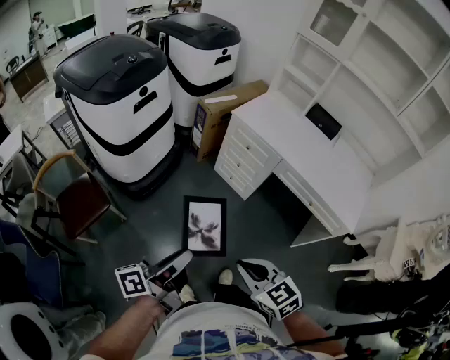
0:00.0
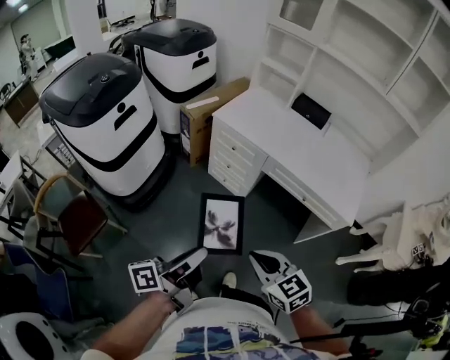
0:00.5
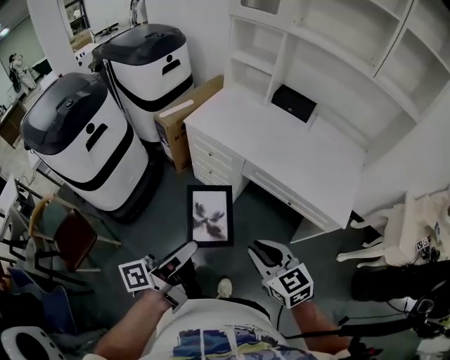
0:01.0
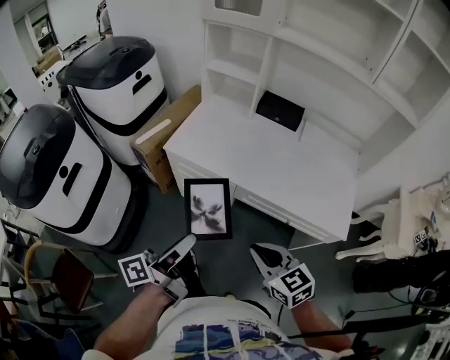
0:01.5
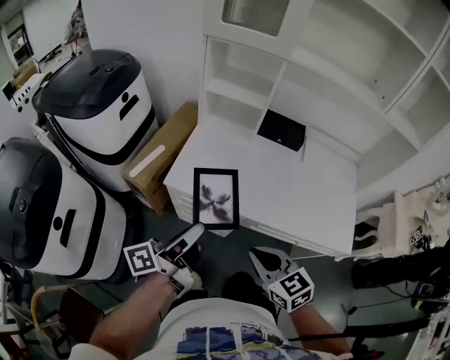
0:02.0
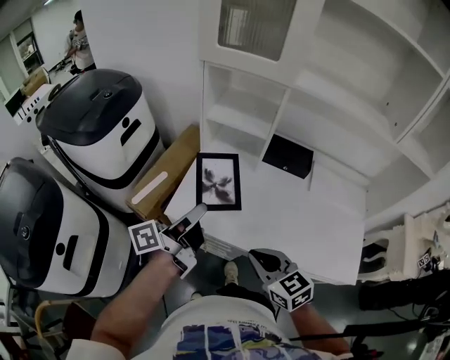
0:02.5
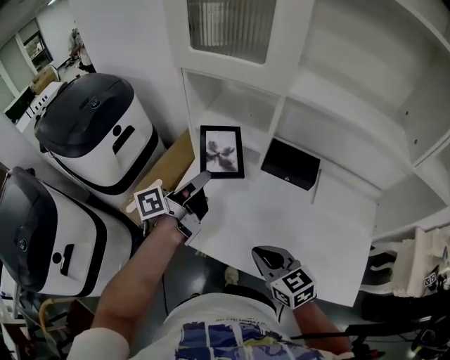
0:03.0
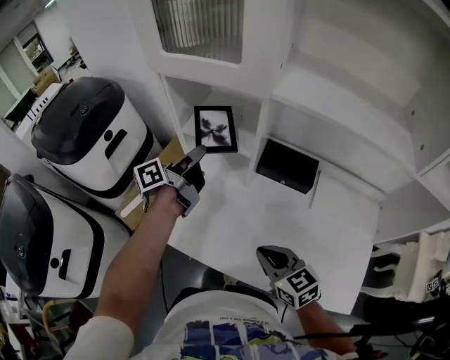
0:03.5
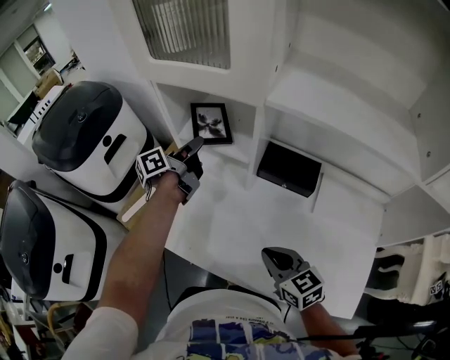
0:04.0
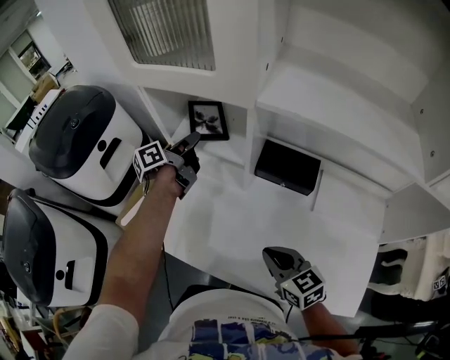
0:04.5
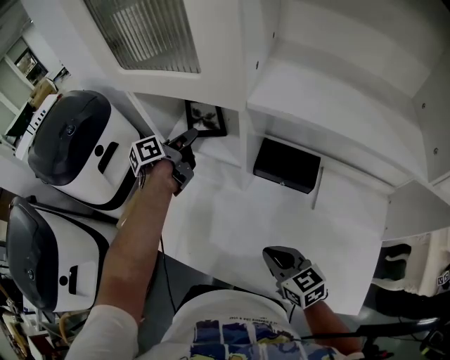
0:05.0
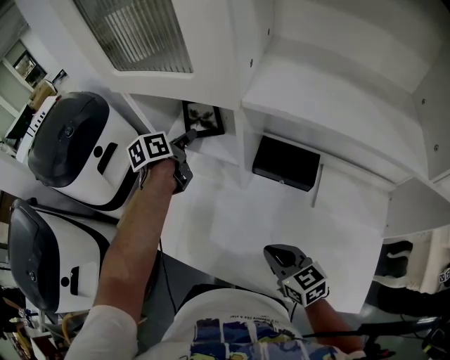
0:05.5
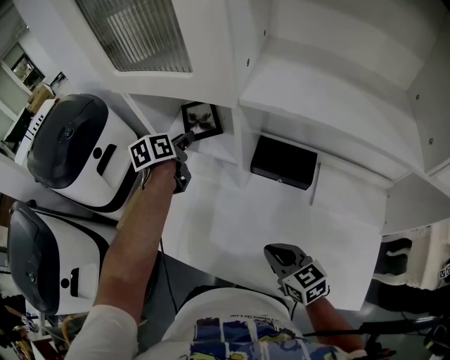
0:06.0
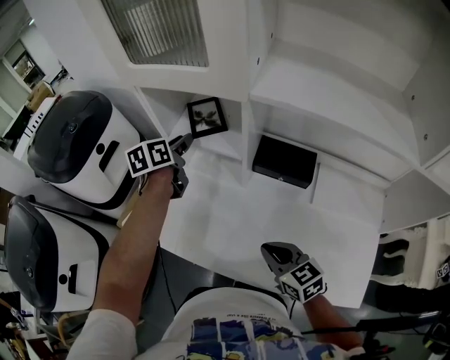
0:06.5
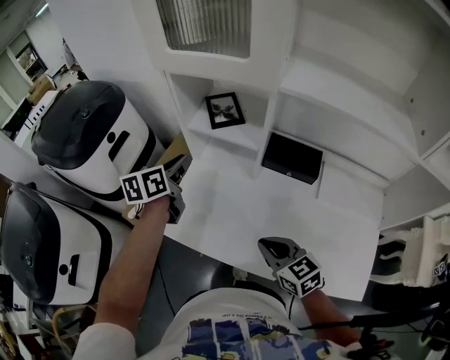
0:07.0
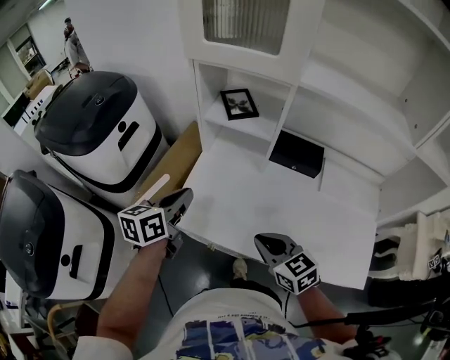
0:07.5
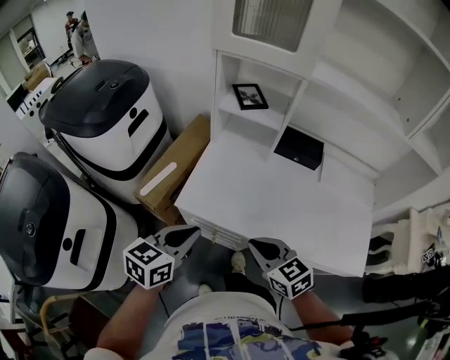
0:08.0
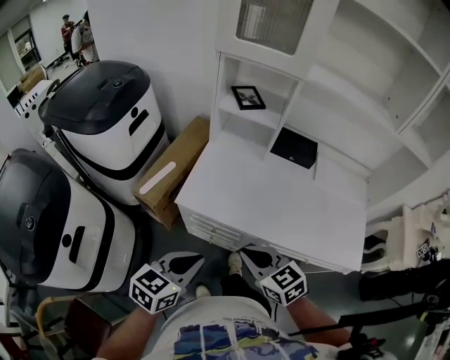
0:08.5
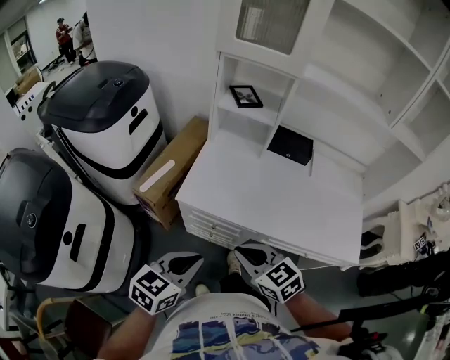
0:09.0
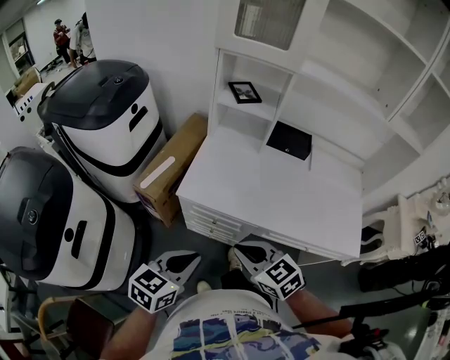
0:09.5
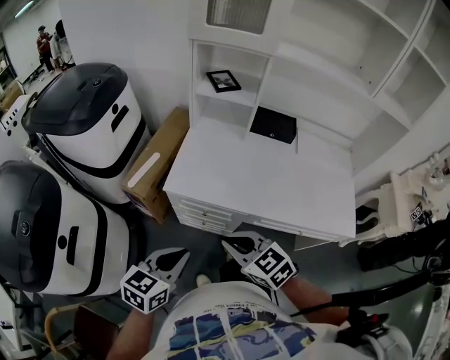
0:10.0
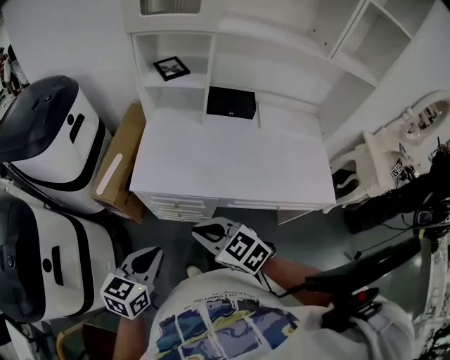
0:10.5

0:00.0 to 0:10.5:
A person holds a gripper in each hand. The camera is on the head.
0:00.0 to 0:02.0: Both grippers are carried forward, some 50 cm. The right gripper changes its angle by about 30 degrees, while the left gripper swivels some 20 degrees.
0:02.0 to 0:04.0: The right gripper goes roughly 30 cm forward and to the right. Meanwhile the left gripper heads forward, covering approximately 50 cm.
0:04.0 to 0:06.5: The left gripper swivels some 40 degrees.
0:06.5 to 0:08.5: The right gripper moves to the left and backward, approximately 25 cm. Meanwhile the left gripper goes about 50 cm backward, swivels approximately 30 degrees, and closes up.
0:08.5 to 0:10.5: The right gripper ends up approximately 5 cm from where it was, while the left gripper ends up about 5 cm from where it was.

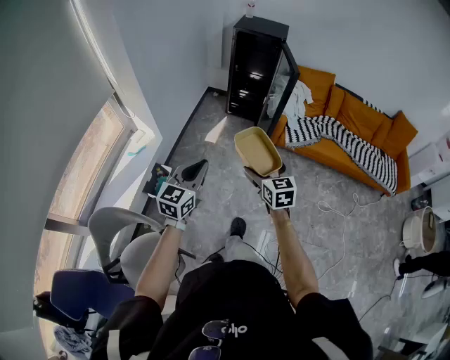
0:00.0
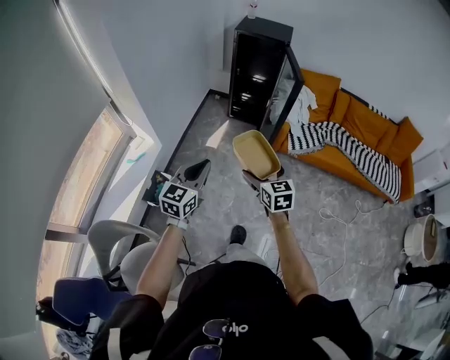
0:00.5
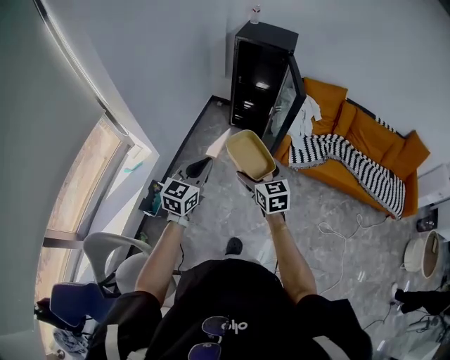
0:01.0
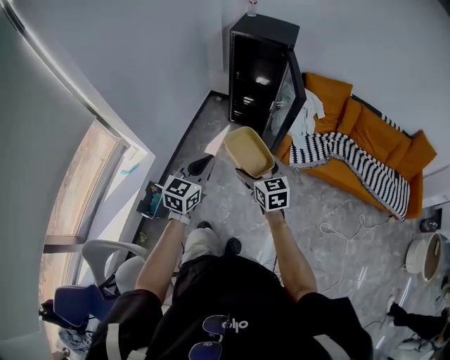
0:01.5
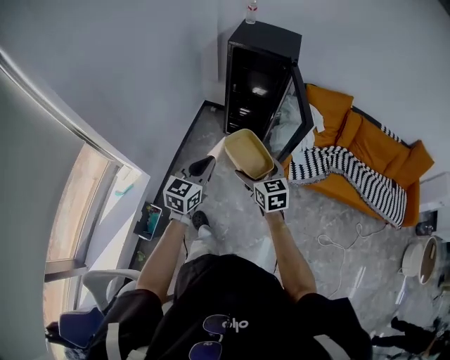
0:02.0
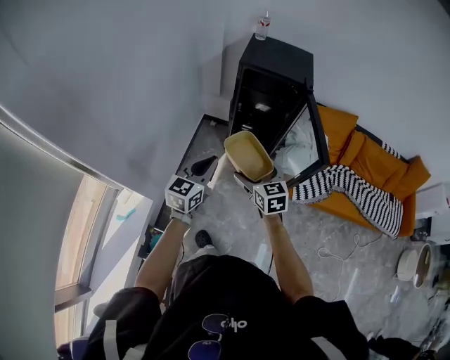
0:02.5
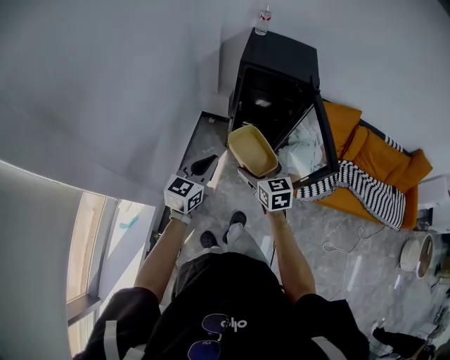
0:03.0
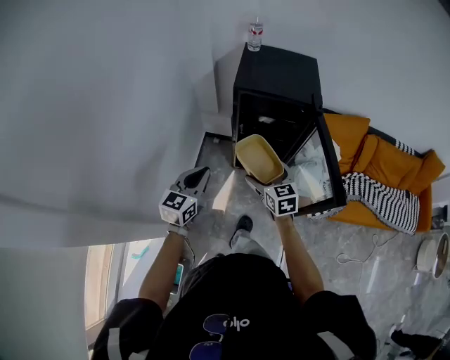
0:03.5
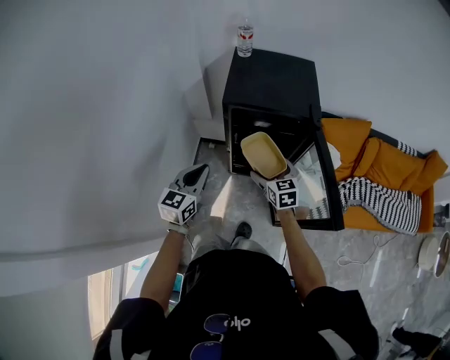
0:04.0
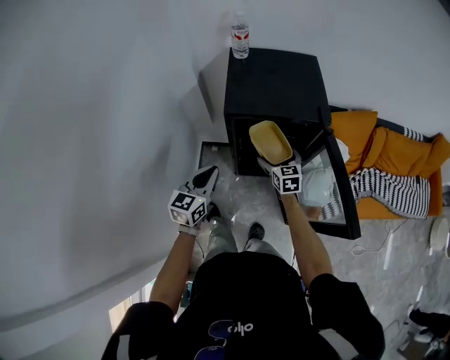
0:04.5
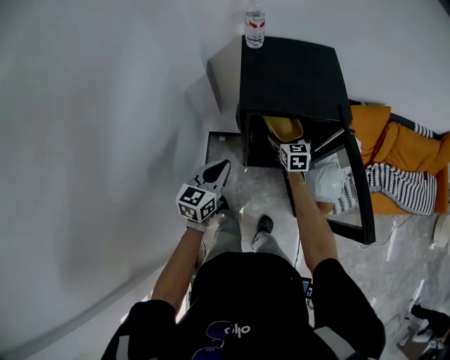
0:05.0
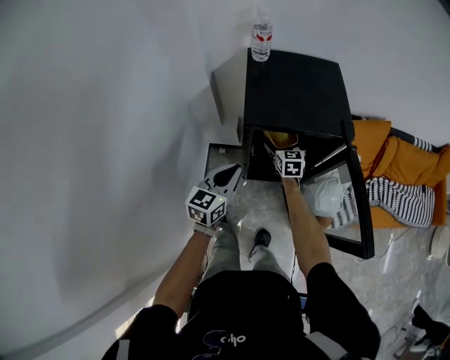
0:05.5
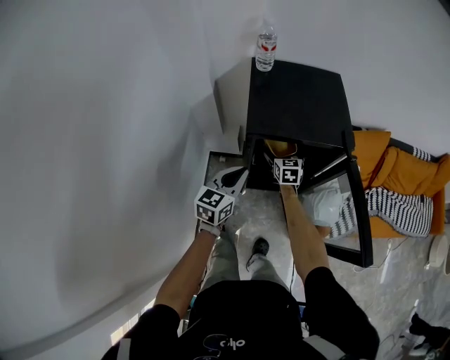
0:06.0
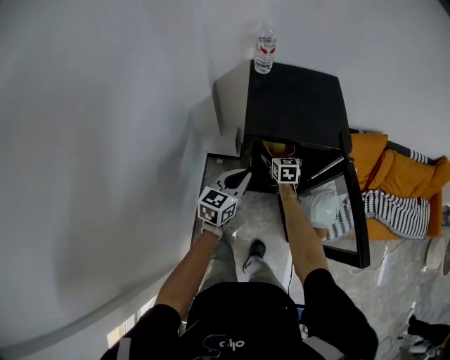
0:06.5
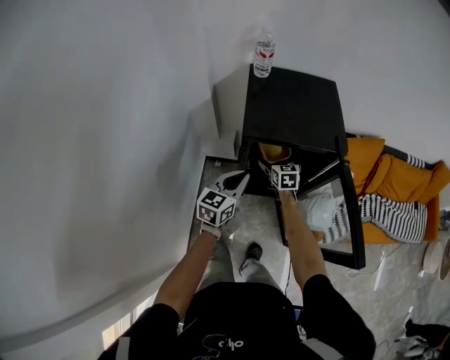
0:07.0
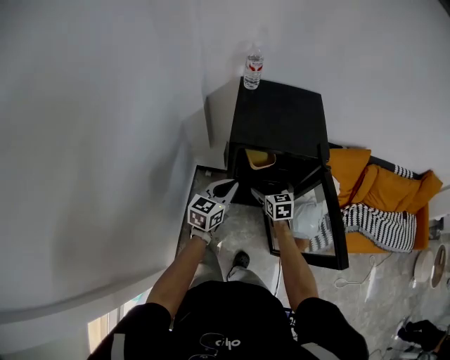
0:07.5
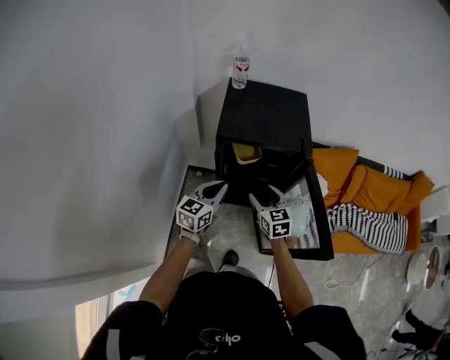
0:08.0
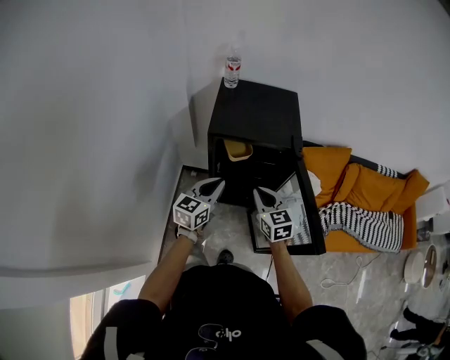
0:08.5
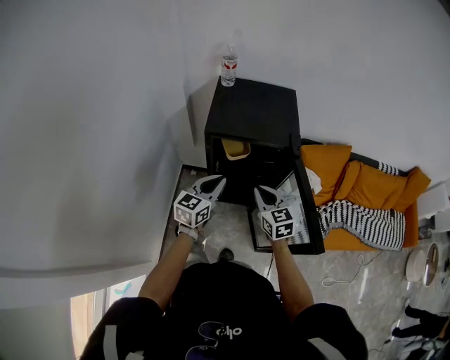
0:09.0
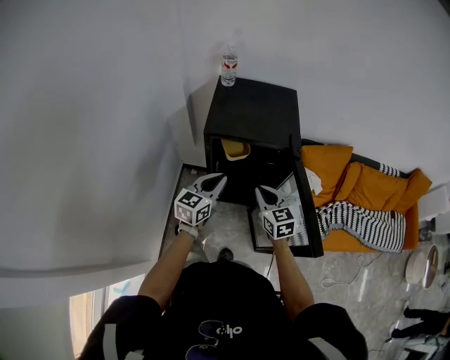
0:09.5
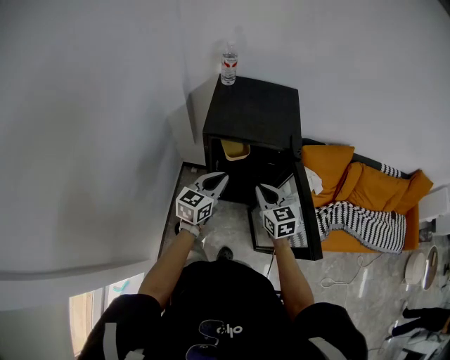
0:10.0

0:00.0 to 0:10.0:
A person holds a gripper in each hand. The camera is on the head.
0:00.0 to 0:02.0: Both grippers are carried forward, about 40 cm.
0:02.0 to 0:04.0: Both grippers are carried forward, some 50 cm.
0:04.0 to 0:06.0: The left gripper travels forward by some 15 cm. The right gripper heads forward and downward, covering about 25 cm.
0:06.0 to 0:08.0: The left gripper moves backward and to the right, about 10 cm, while the right gripper shifts about 25 cm backward and upward, and closes.
0:08.0 to 0:10.0: The left gripper is displaced to the right by approximately 5 cm. Meanwhile the right gripper ends up some 5 cm from where it was, and closes up.

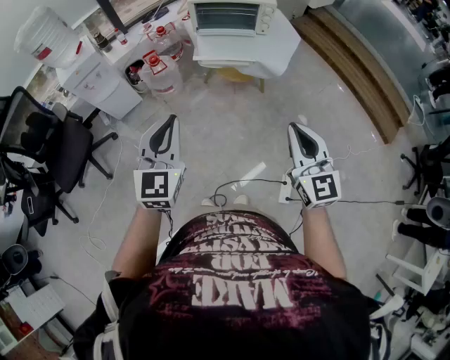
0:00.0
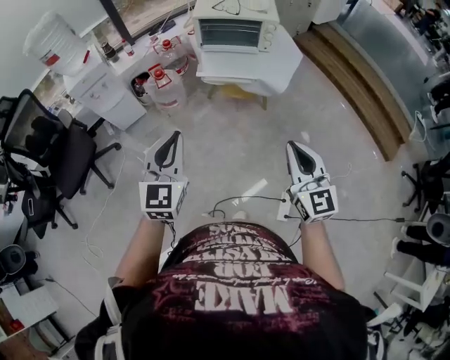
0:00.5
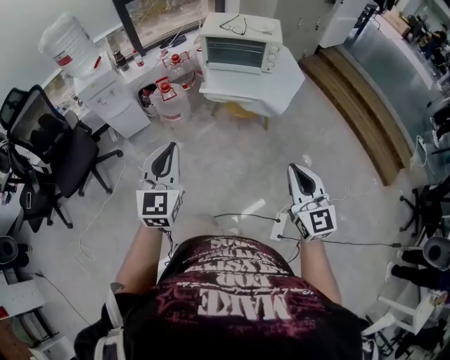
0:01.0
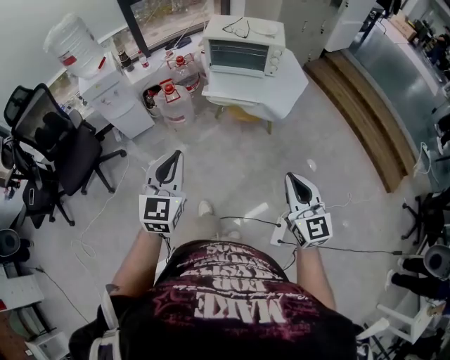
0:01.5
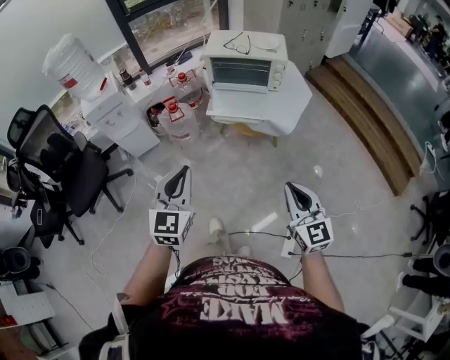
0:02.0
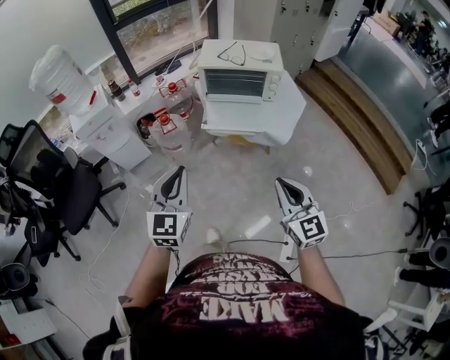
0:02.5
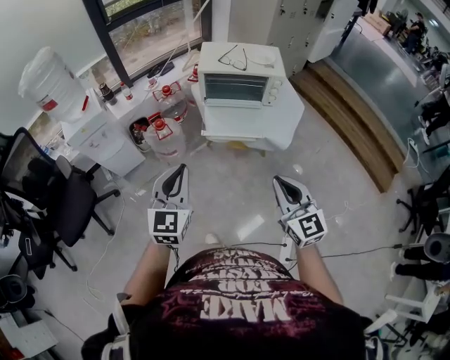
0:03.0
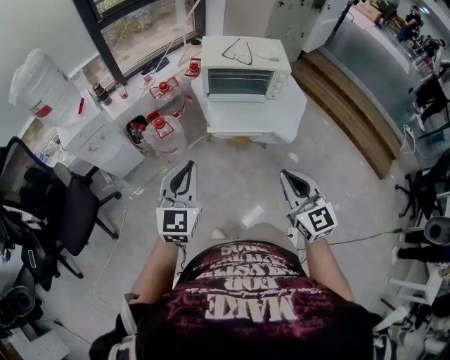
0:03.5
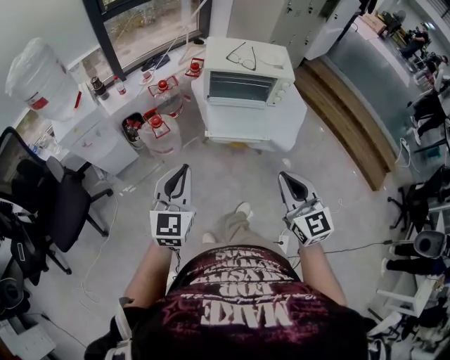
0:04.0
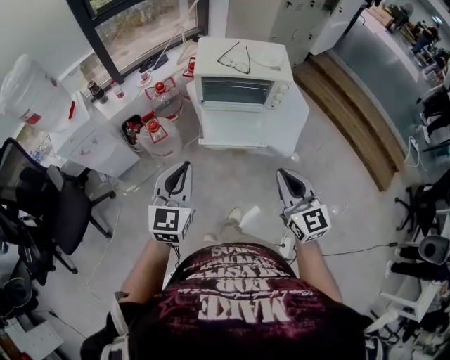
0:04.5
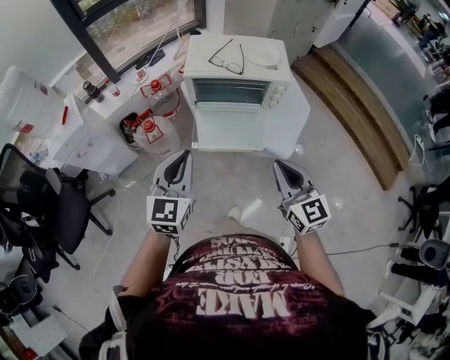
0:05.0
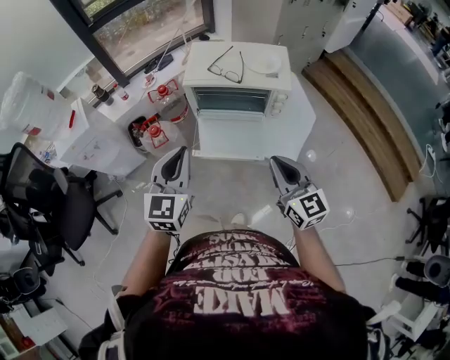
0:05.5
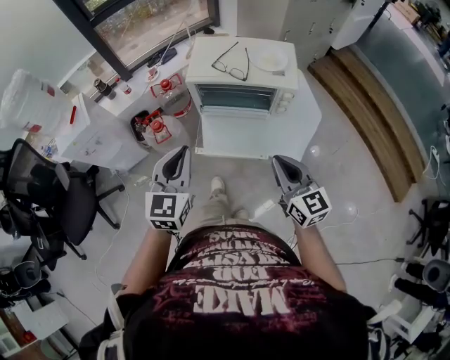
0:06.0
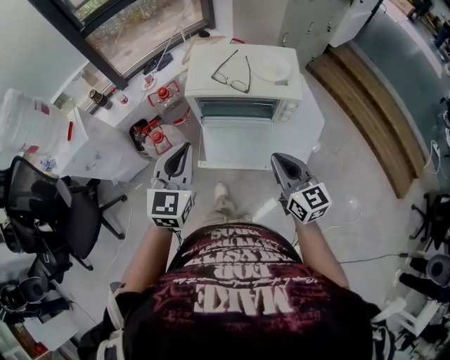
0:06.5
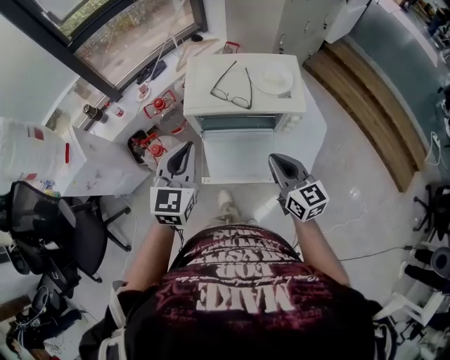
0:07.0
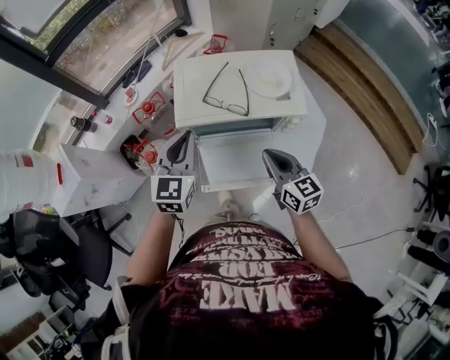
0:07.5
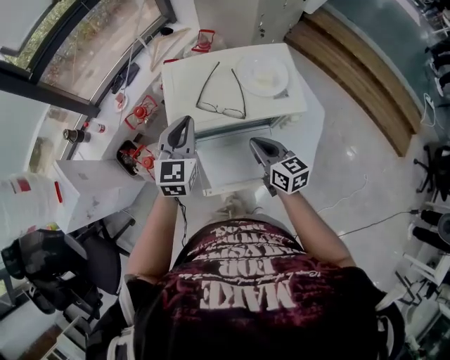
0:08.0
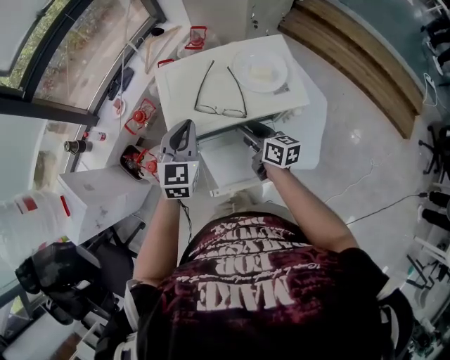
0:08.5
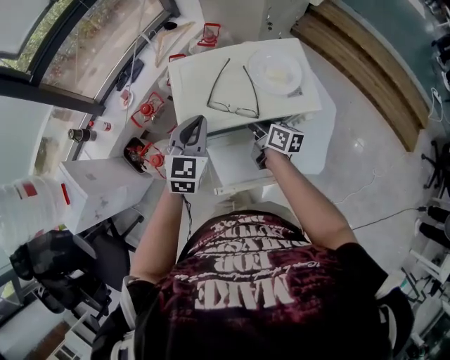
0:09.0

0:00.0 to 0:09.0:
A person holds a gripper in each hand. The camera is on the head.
0:00.0 to 0:02.0: The left gripper changes place by approximately 5 cm; the right gripper moves approximately 5 cm.
0:02.0 to 0:04.5: The two grippers go roughly 25 cm forward.
0:04.5 to 0:07.0: Both grippers move forward, approximately 25 cm.
0:07.0 to 0:09.0: Both grippers move forward and downward, approximately 25 cm. The right gripper rolls clockwise, seen from behind, by roughly 40 degrees, and opens its fingers.
